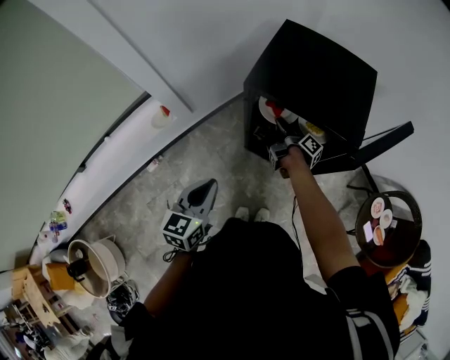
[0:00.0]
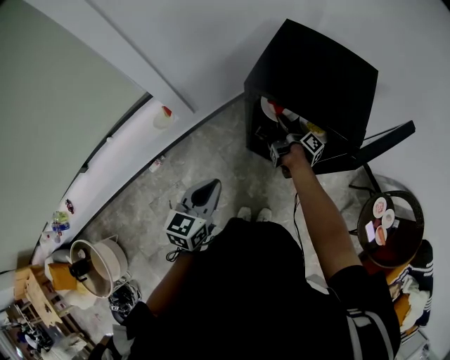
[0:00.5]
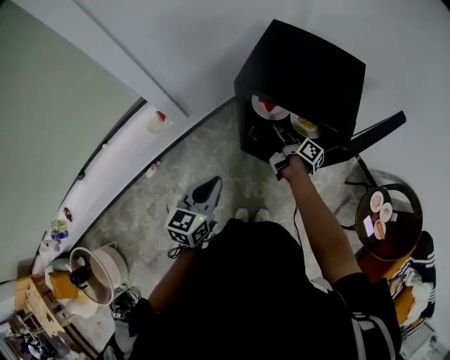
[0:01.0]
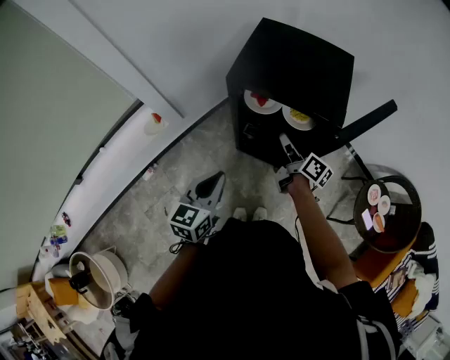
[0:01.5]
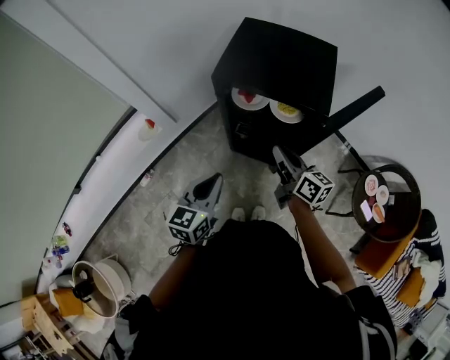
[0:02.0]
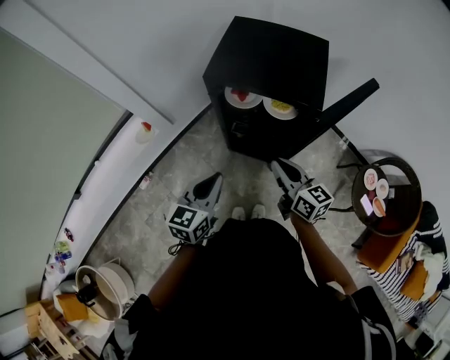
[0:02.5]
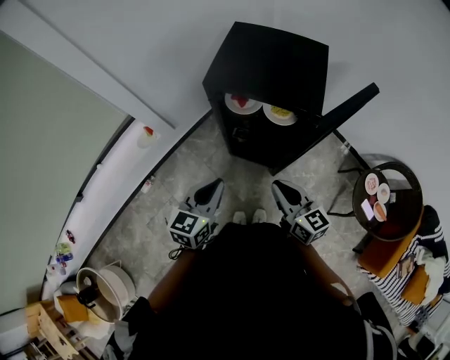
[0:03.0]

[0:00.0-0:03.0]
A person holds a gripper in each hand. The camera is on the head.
0:00.0 to 0:01.5: The left gripper changes place by some 5 cm.

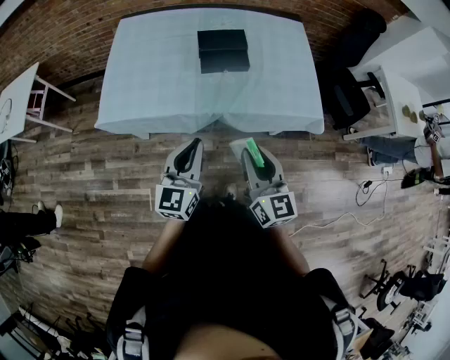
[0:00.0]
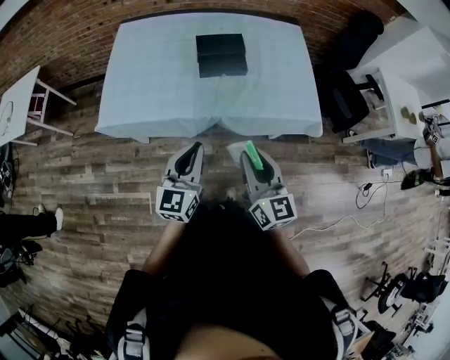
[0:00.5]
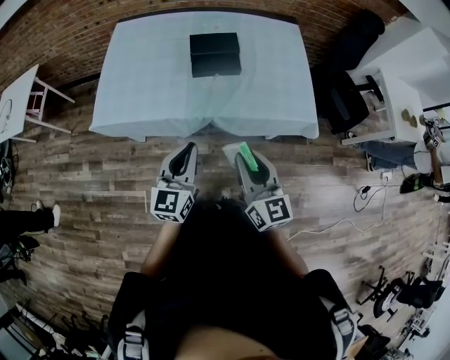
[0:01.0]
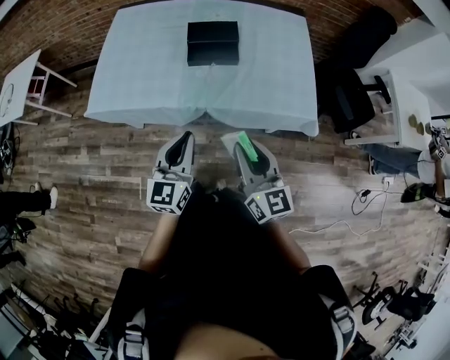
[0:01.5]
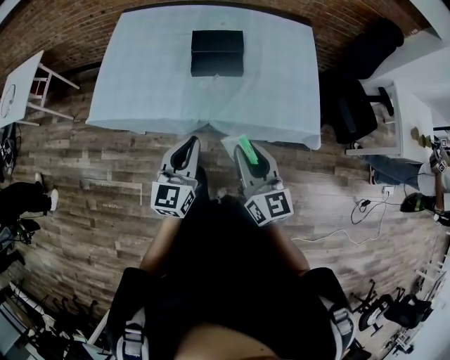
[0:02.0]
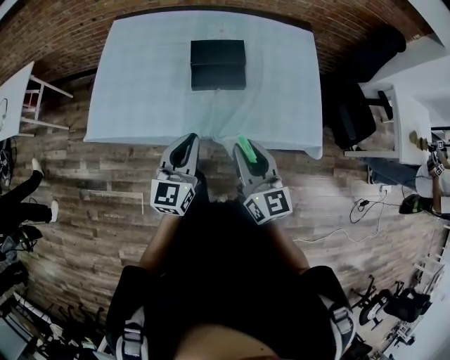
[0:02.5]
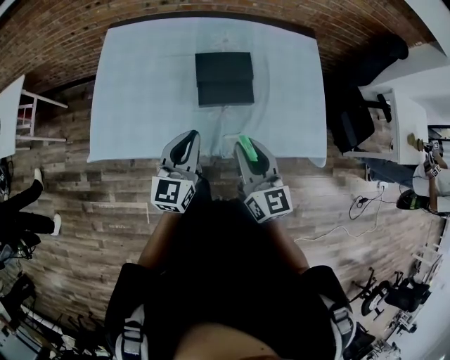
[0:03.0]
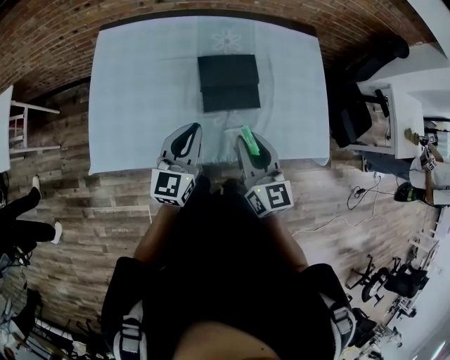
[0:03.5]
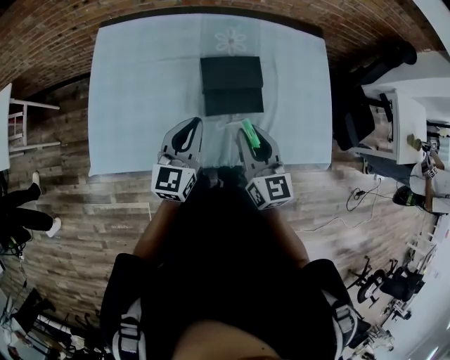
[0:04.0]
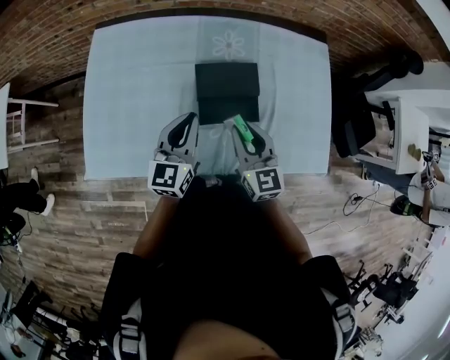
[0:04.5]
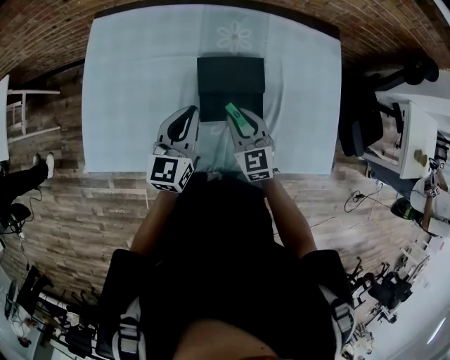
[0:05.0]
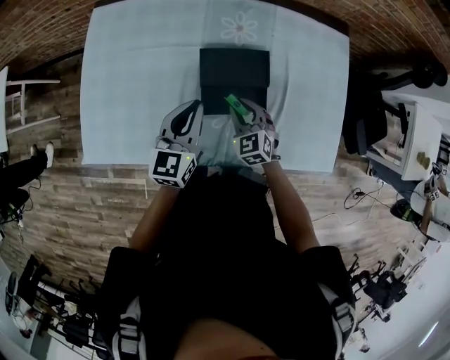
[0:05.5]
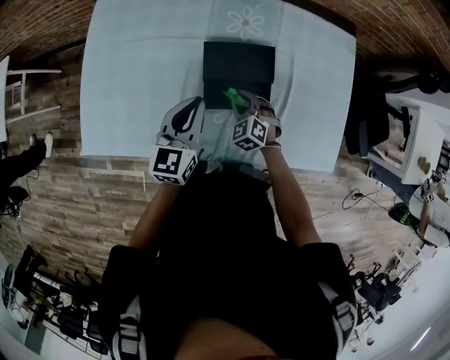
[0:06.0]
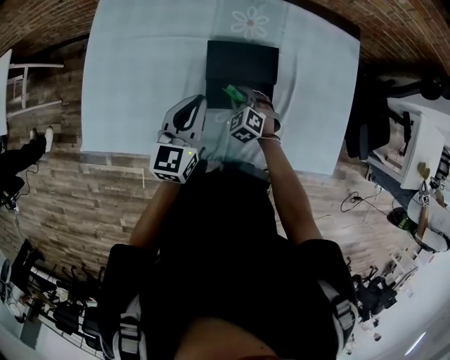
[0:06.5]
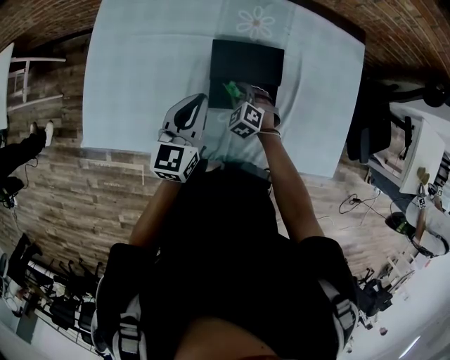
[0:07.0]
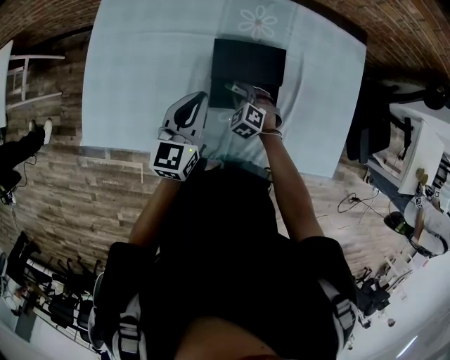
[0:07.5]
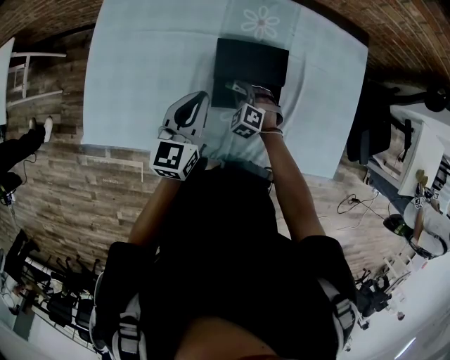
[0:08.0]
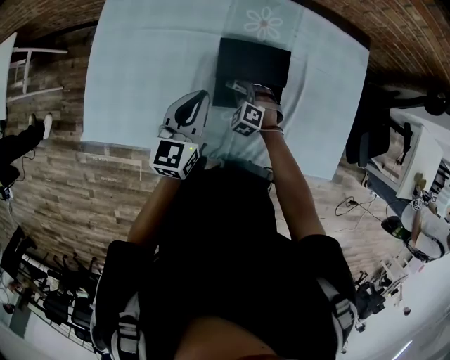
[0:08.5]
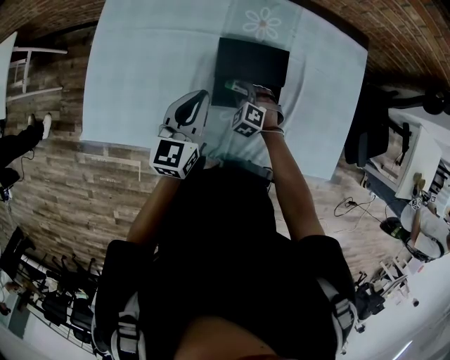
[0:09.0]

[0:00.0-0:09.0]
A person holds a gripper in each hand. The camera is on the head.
0:00.0 to 0:02.0: Both grippers travel together to the right and forward, about 10 cm.
0:02.0 to 0:04.5: Both grippers move forward, approximately 35 cm.
0:04.5 to 0:07.0: The left gripper changes place by about 5 cm; the right gripper goes roughly 25 cm downward, and tips its fingers downward by roughly 40 degrees.
0:07.0 to 0:09.0: The grippers make only small movements.

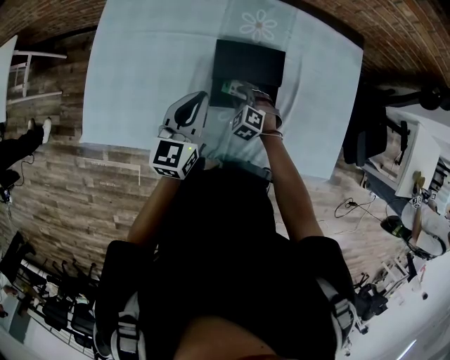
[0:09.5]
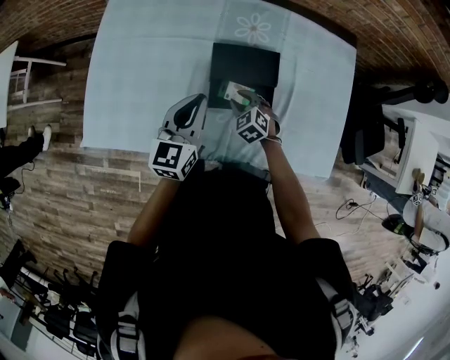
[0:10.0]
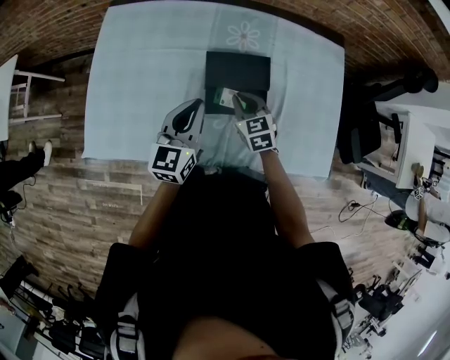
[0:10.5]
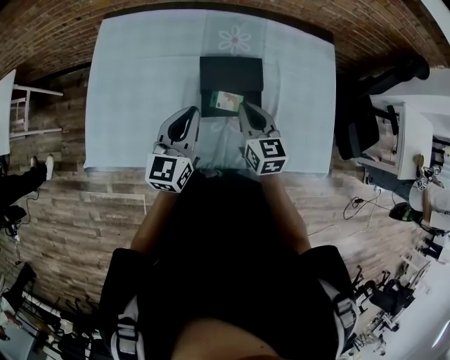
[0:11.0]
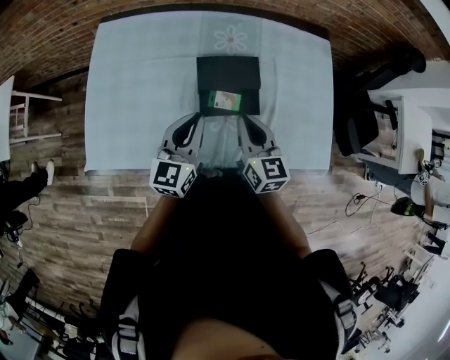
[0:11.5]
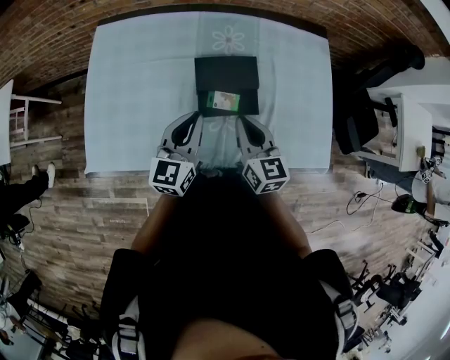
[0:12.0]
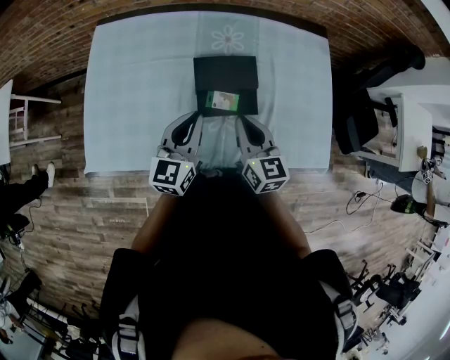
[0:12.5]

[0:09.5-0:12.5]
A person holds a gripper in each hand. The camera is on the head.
0:09.5 to 0:11.0: The right gripper goes roughly 20 cm upward, rolls clockwise, seen from behind, by some 60 degrees, and closes up; the left gripper ends up some 5 cm from where it was.
0:11.0 to 0:12.5: The right gripper ends up about 5 cm from where it was.

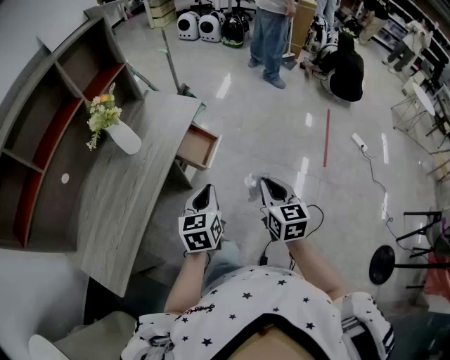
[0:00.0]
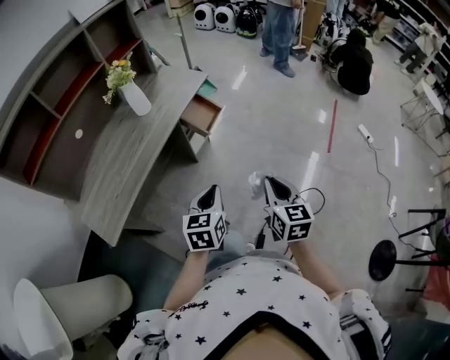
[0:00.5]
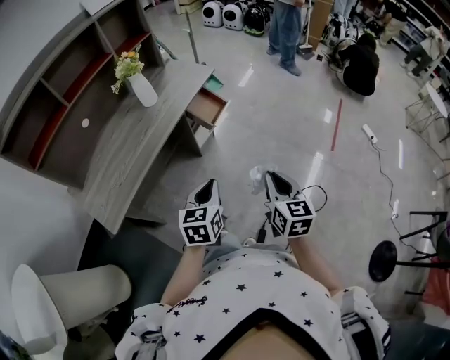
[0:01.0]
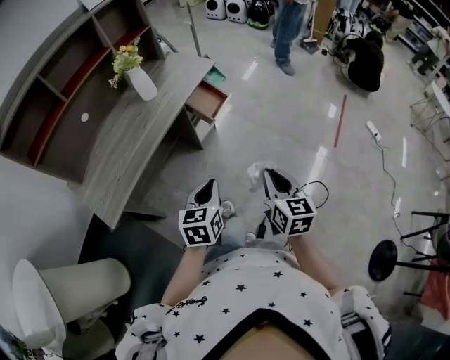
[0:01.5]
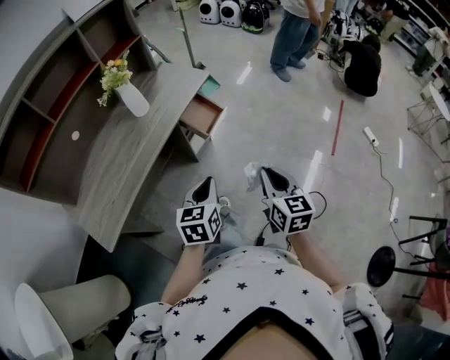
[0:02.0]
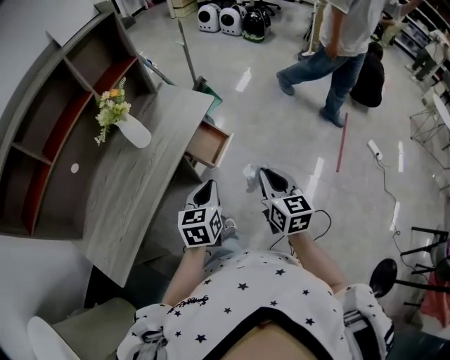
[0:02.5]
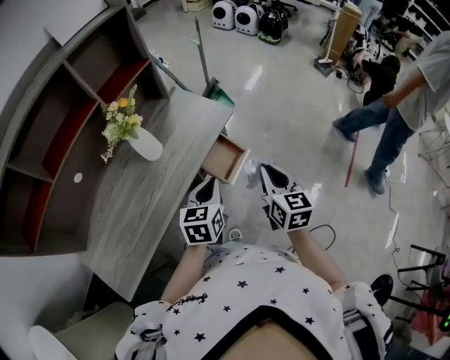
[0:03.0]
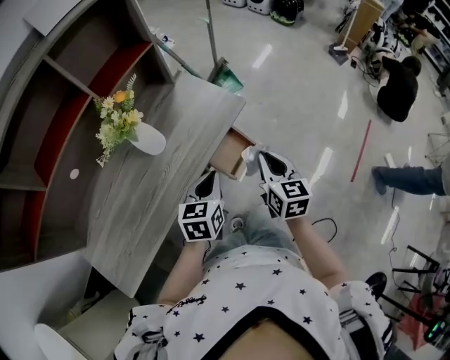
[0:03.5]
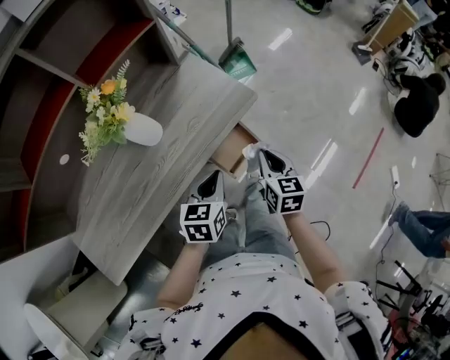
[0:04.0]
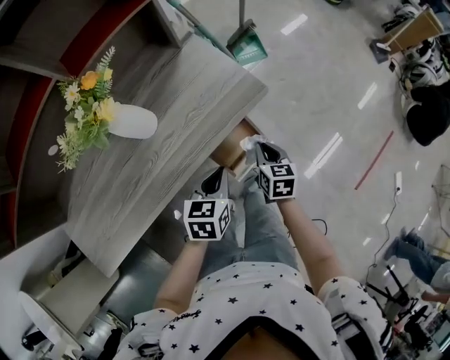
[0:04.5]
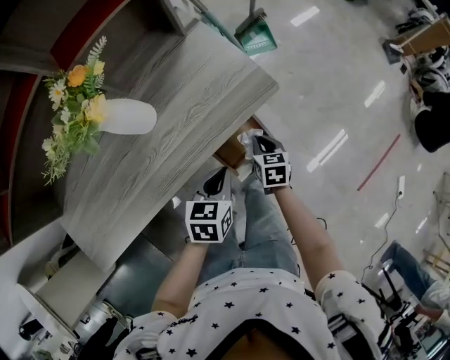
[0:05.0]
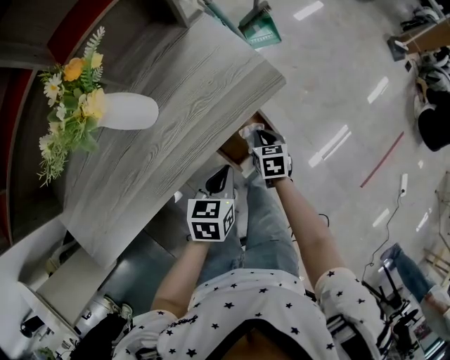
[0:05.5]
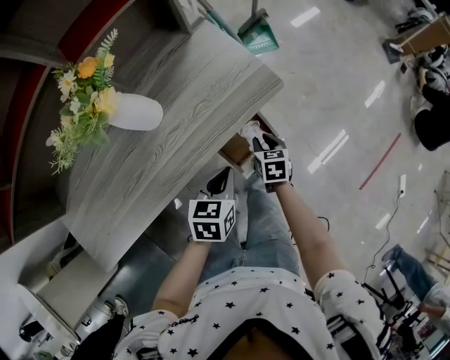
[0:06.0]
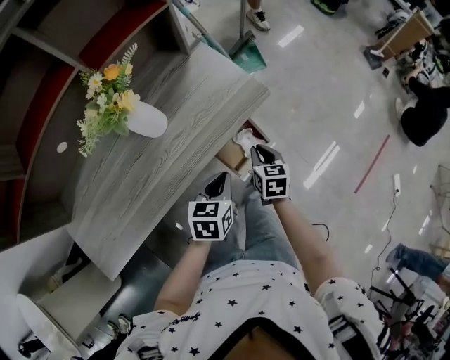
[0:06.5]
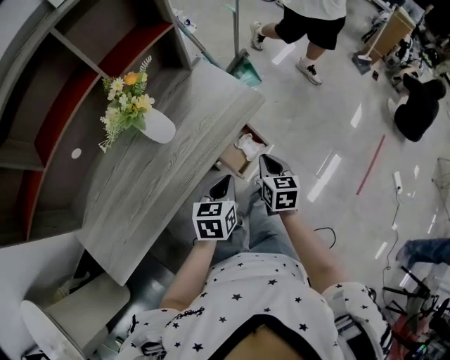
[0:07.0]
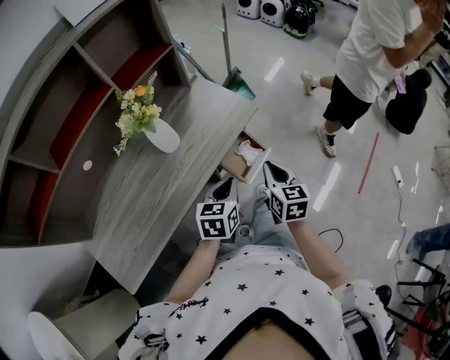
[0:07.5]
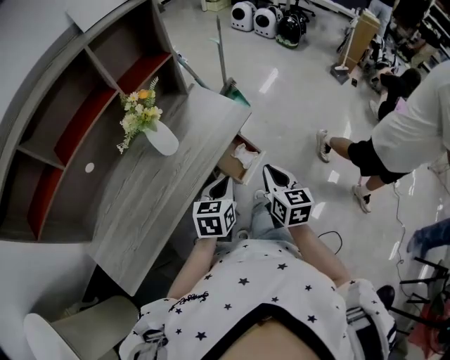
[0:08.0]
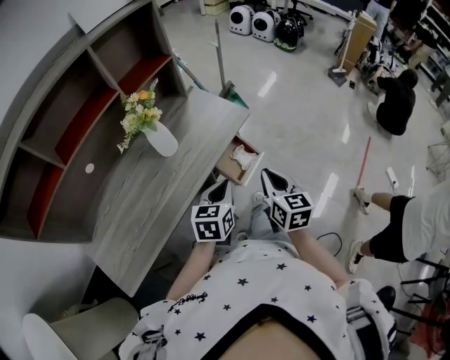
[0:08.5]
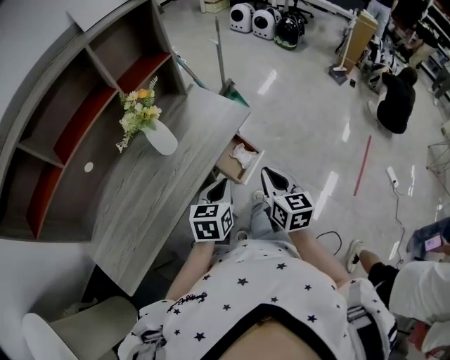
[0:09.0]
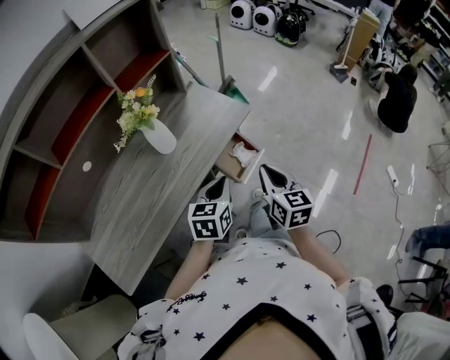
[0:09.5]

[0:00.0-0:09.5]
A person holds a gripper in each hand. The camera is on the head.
0:00.0 to 0:02.0: The two grippers go roughly 10 cm backward.
0:02.0 to 0:04.0: The grippers both shift forward by some 40 cm.
0:04.0 to 0:05.5: The left gripper shifts some 10 cm downward. The right gripper shifts about 20 cm downward, and rotates roughly 20 degrees.
0:05.5 to 0:07.5: The left gripper goes approximately 15 cm upward and backward; the right gripper shifts approximately 30 cm upward and backward, and rotates some 30 degrees.
0:07.5 to 0:09.5: The right gripper goes roughly 5 cm upward.

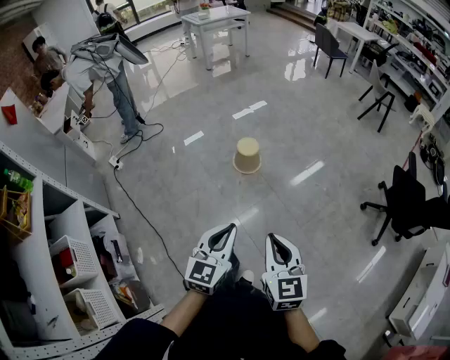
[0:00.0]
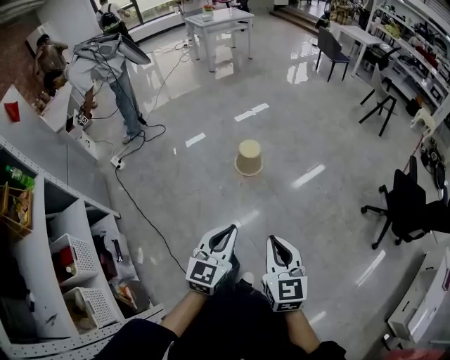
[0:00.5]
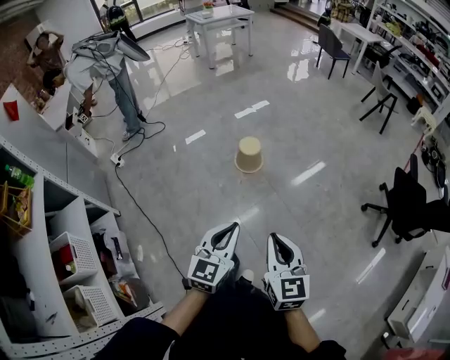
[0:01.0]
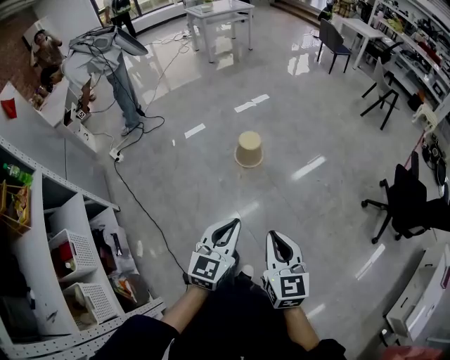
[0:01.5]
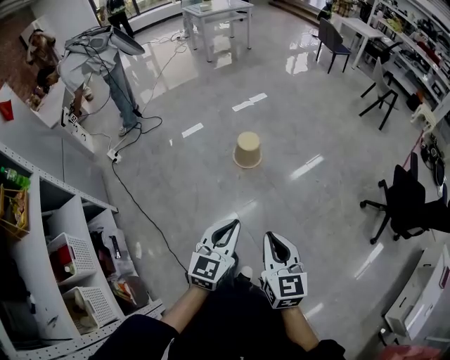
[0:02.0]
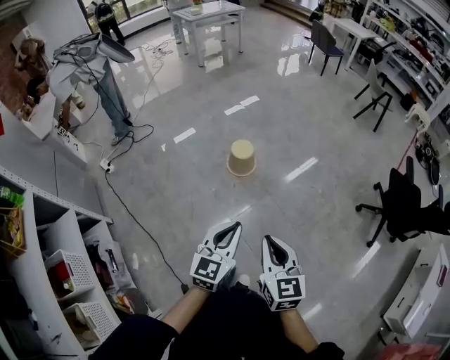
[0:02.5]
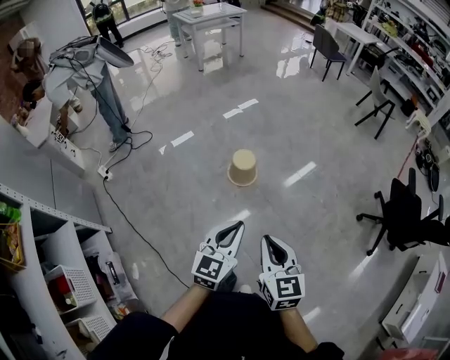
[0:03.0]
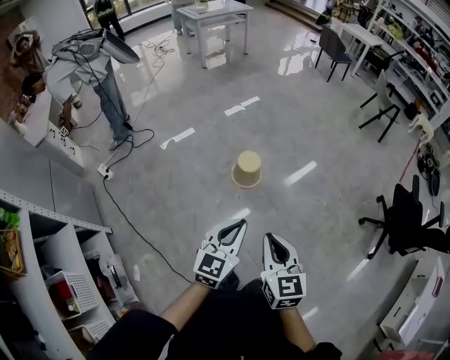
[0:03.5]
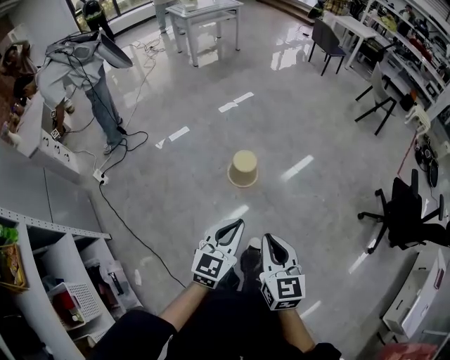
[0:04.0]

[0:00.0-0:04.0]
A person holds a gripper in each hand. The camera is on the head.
0:00.0 to 0:02.0: The grippers stay close to where they were, moving slightly.
0:02.0 to 0:04.0: The left gripper shifts some 20 cm forward, while the right gripper moves forward and to the left, approximately 20 cm.
